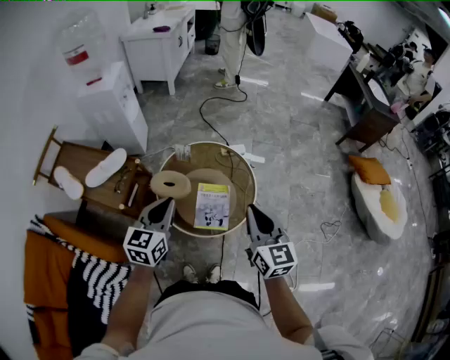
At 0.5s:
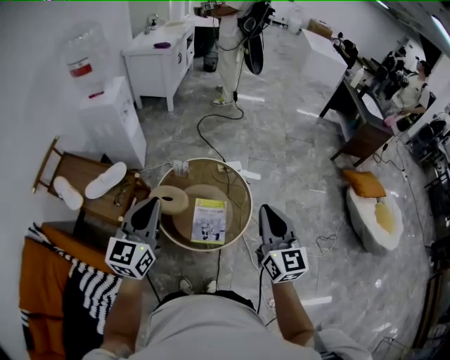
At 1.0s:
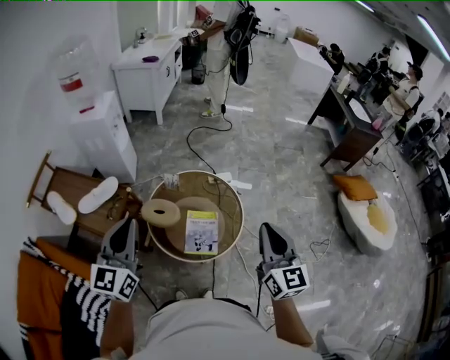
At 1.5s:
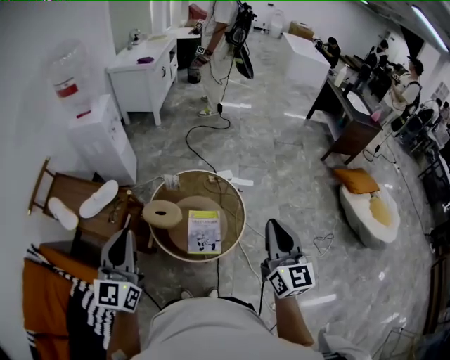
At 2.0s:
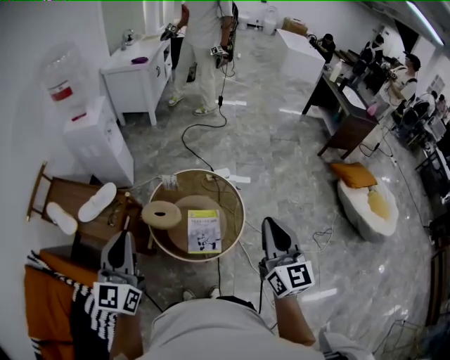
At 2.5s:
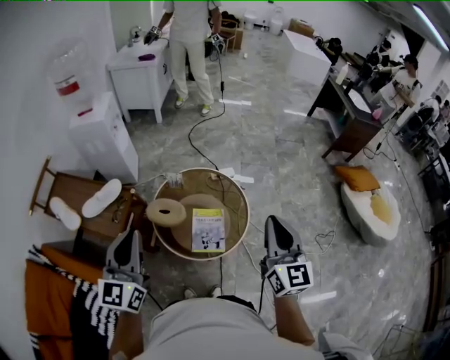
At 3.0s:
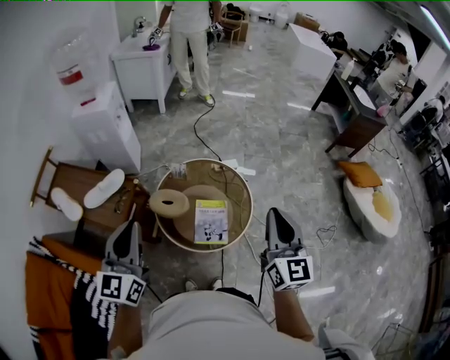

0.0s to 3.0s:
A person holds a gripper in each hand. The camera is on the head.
0.0s to 1.5s: The right gripper shifts roughly 10 cm upward and to the right. Meanwhile the left gripper goes roughly 15 cm upward, to the left and backward, and rotates about 20 degrees.
1.5s to 3.0s: There are only small adjustments of the grippers.

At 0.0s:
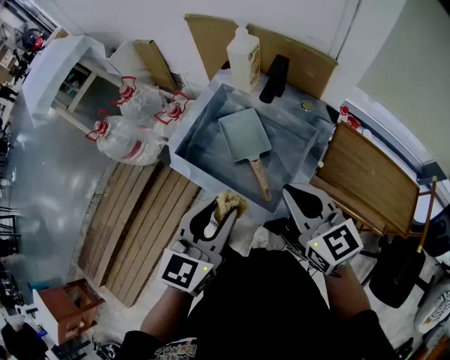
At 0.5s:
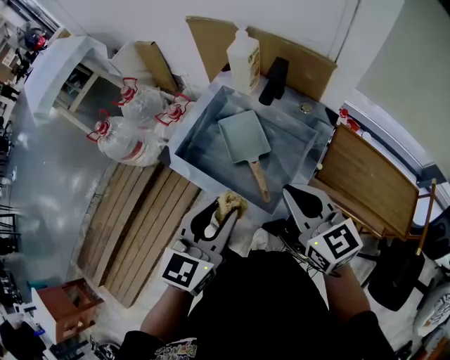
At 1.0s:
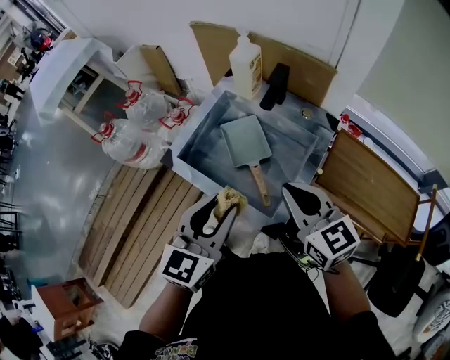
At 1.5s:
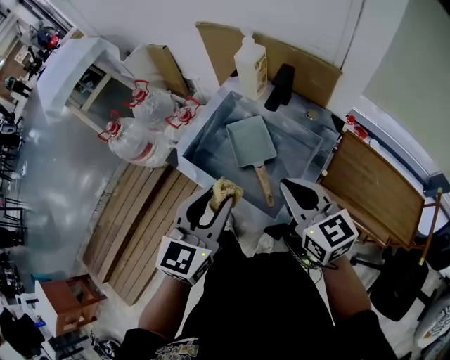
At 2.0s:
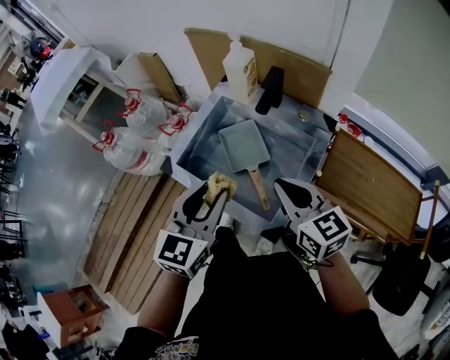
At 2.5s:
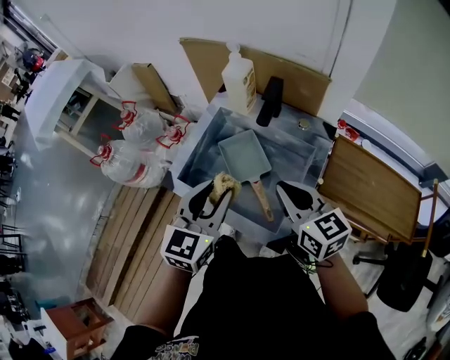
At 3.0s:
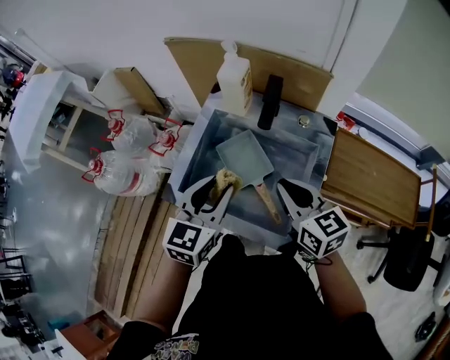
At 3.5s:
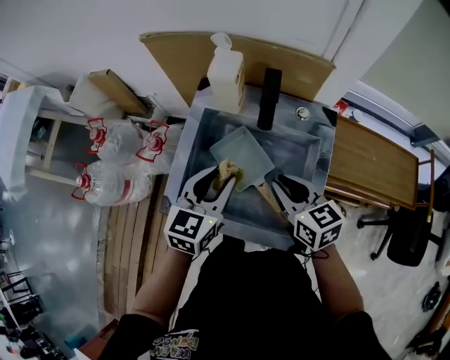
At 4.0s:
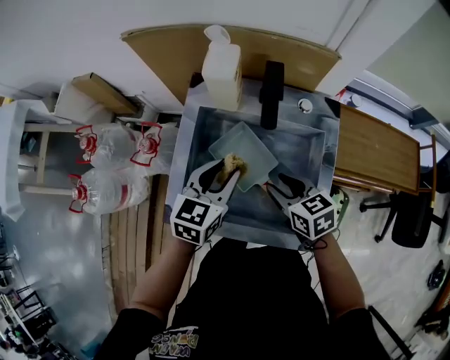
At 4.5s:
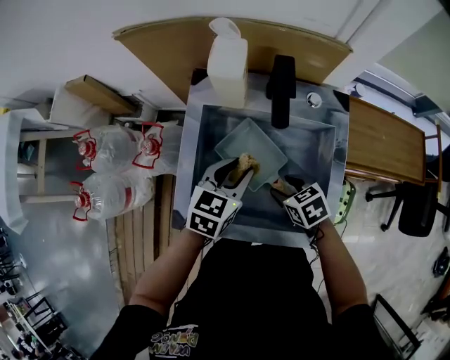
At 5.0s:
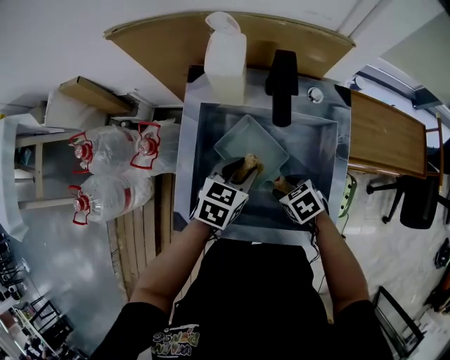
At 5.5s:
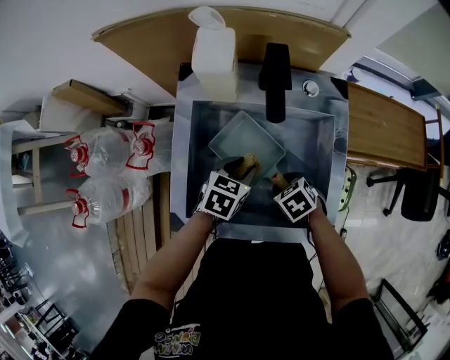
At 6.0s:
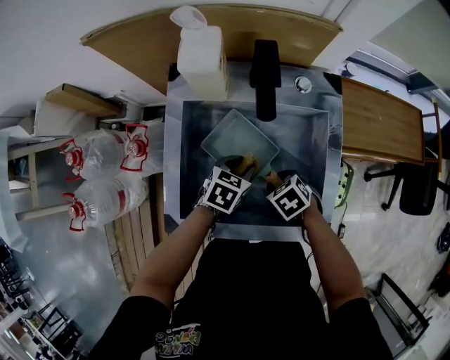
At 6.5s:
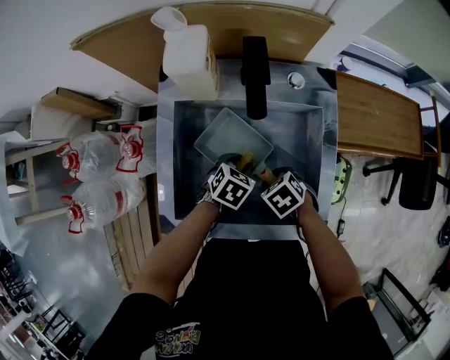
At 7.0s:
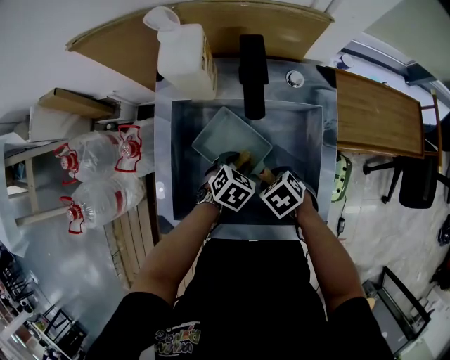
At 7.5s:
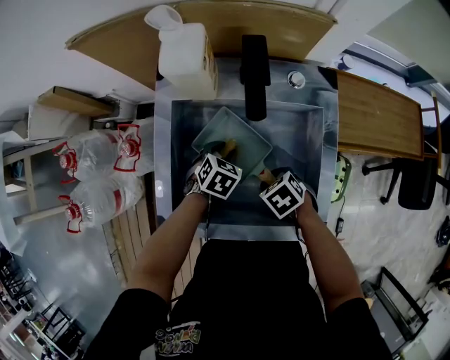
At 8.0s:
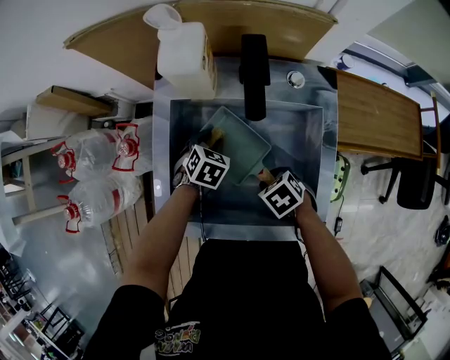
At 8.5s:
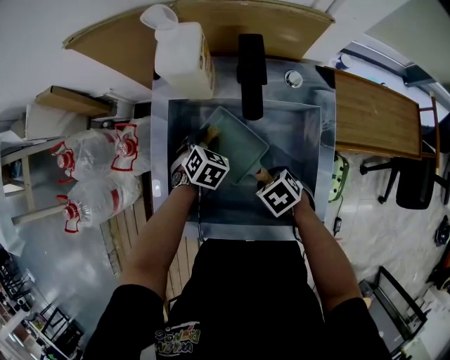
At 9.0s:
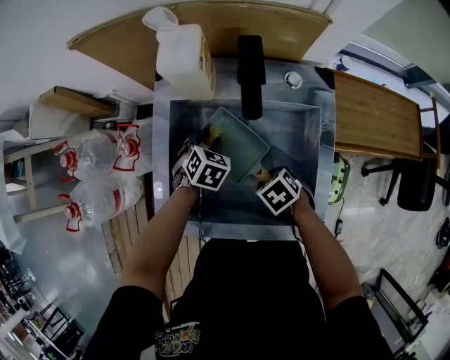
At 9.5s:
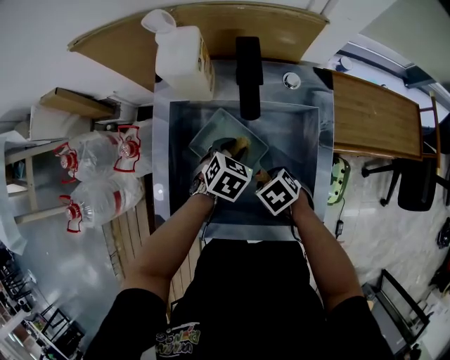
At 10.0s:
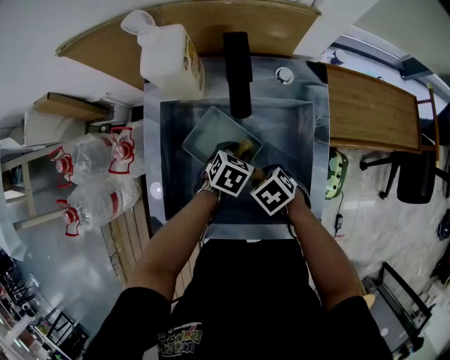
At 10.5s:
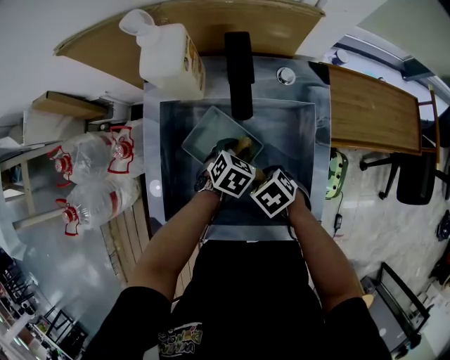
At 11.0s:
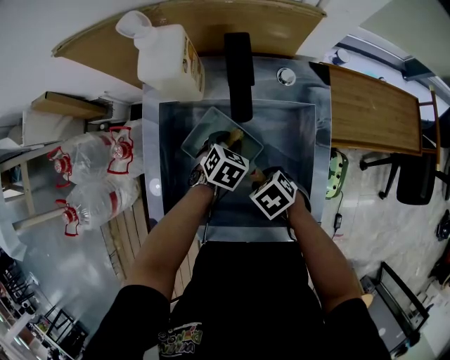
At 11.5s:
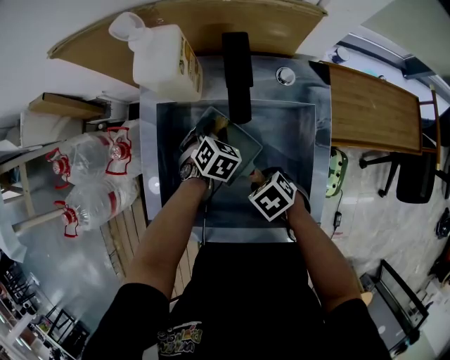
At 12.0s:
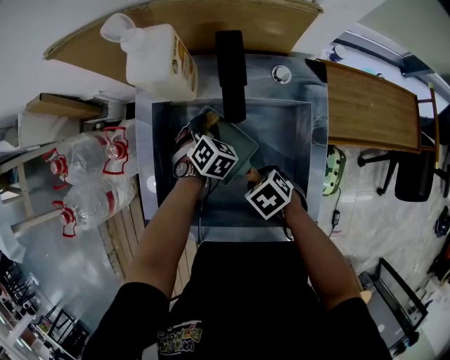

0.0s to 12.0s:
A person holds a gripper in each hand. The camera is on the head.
0.0s to 2.0s: The left gripper shifts by approximately 5 cm.
2.0s to 4.0s: The left gripper heads forward and downward, covering some 25 cm, and rotates some 30 degrees, while the right gripper heads downward and forward, covering roughly 20 cm, rotates about 30 degrees, and opens up.
4.0s to 6.0s: The grippers both shift downward by roughly 15 cm. The left gripper swivels roughly 30 degrees, while the right gripper angles its fingers downward, by approximately 30 degrees.
6.0s to 8.0s: The left gripper moves approximately 10 cm, and turns by approximately 20 degrees.
8.0s to 10.0s: The left gripper ends up about 10 cm from where it was.
10.0s to 12.0s: The left gripper moves about 10 cm, and changes its angle by approximately 30 degrees.

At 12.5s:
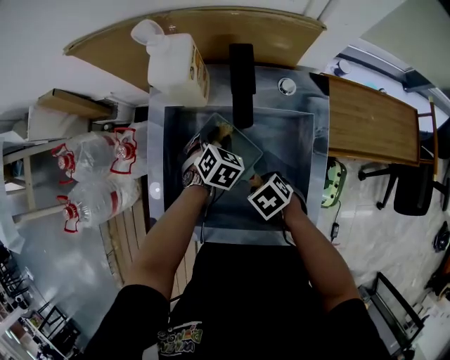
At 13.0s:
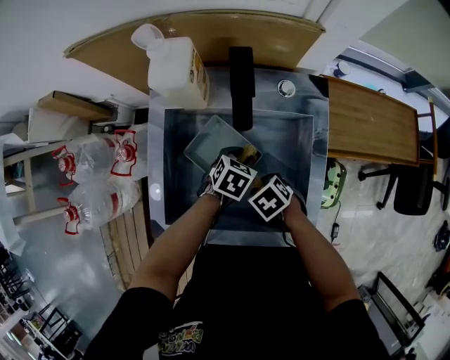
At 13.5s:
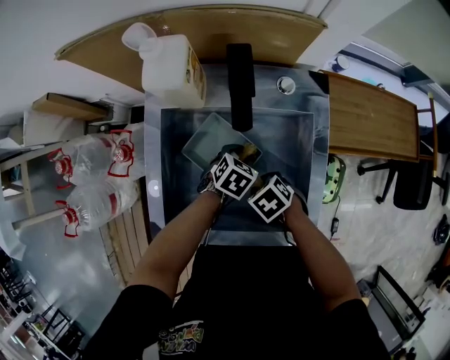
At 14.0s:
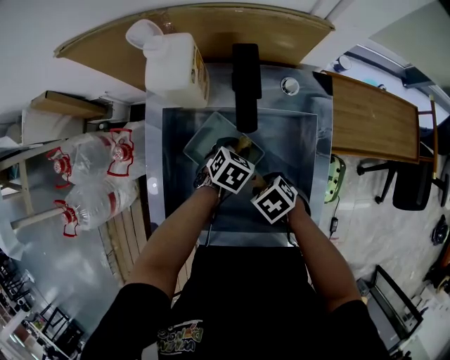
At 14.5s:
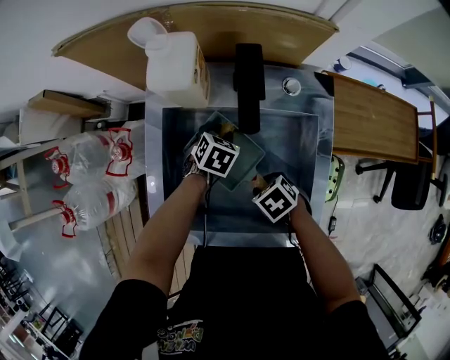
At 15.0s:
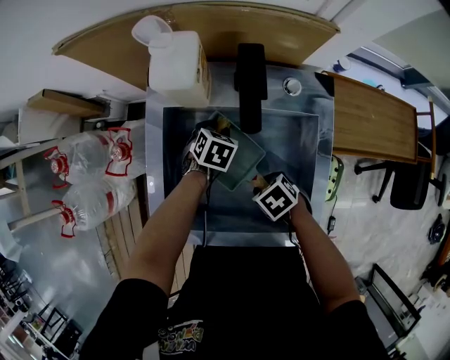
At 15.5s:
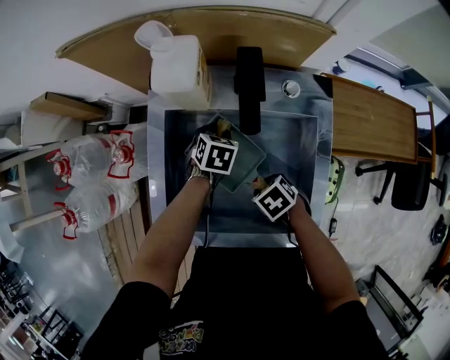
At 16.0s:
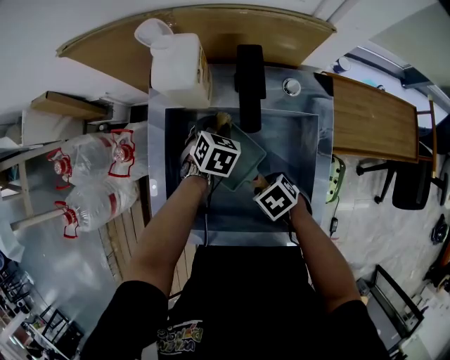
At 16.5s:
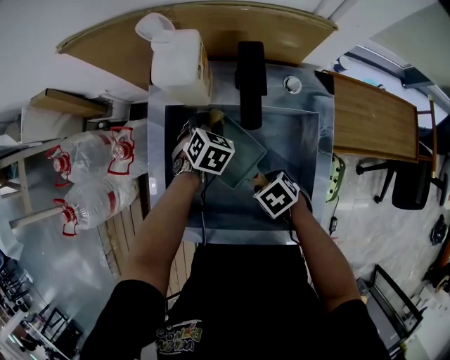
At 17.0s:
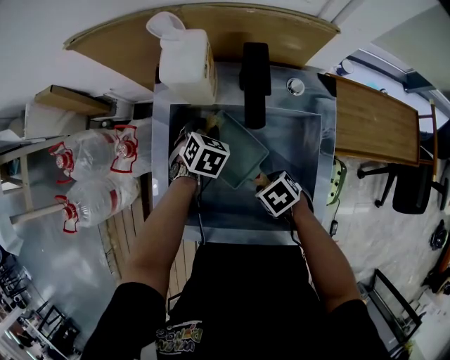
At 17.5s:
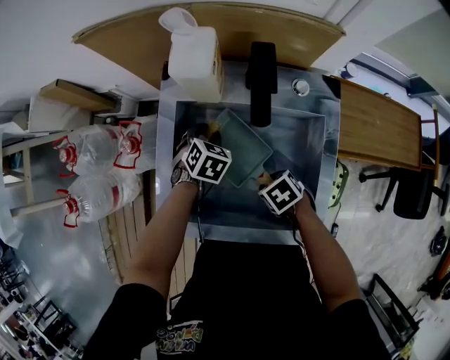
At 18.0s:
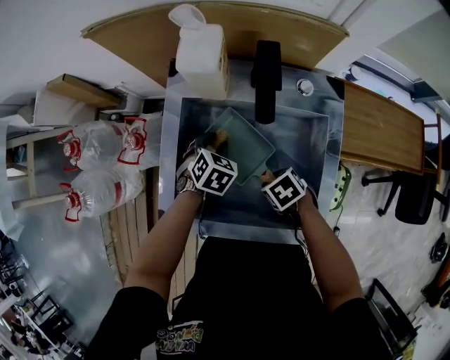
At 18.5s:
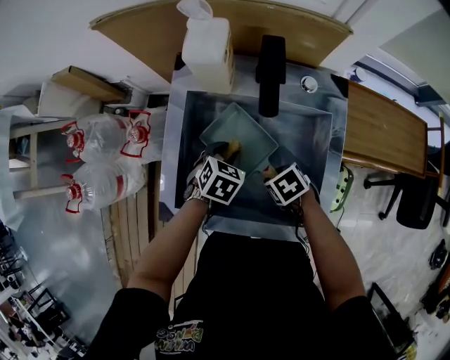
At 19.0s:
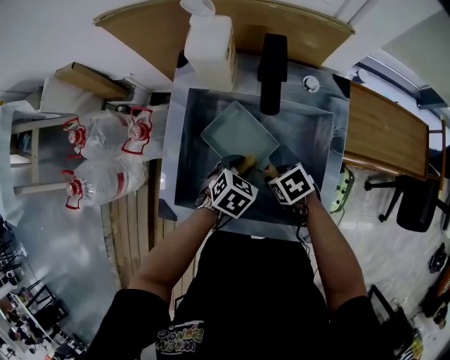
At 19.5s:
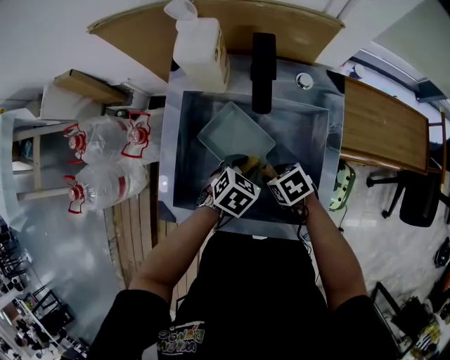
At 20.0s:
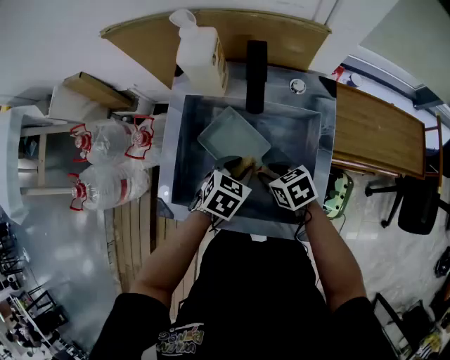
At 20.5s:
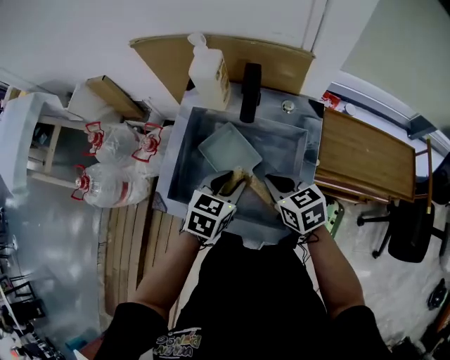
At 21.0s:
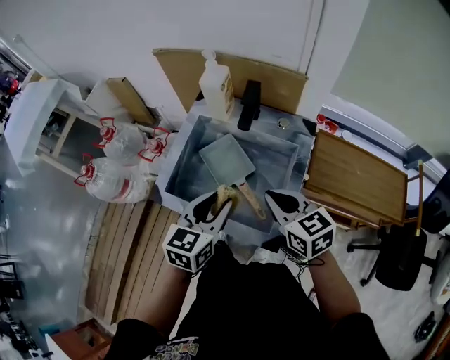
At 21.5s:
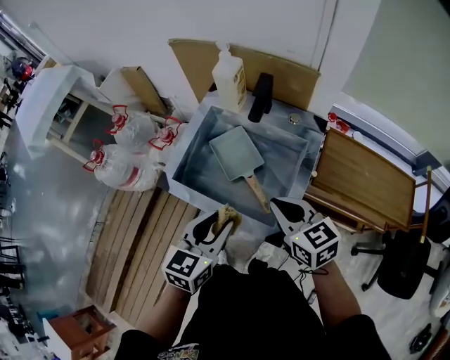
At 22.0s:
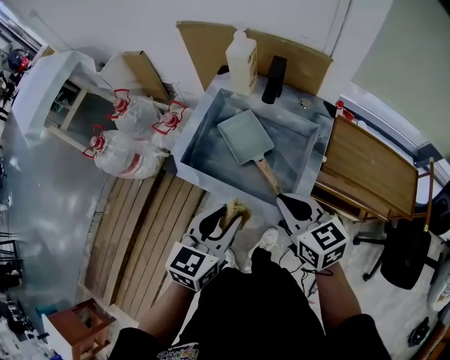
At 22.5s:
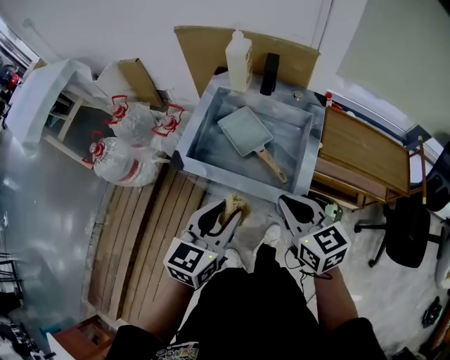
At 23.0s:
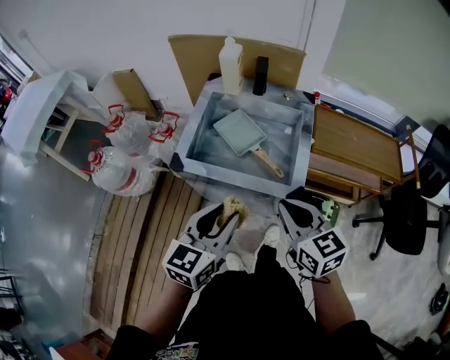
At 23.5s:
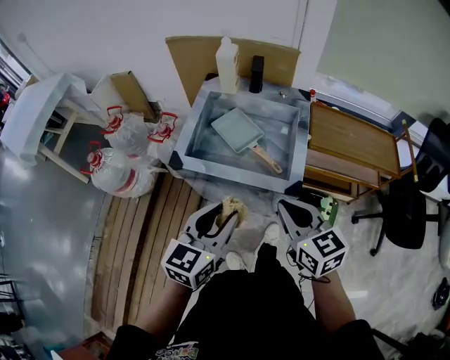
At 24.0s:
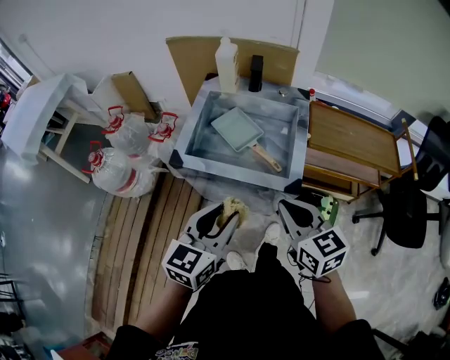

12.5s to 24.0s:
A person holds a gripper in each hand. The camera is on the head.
14.5s to 16.5s: The left gripper shifts by some 5 cm.
16.5s to 18.5s: The left gripper moves backward and to the left, about 10 cm.
18.5s to 20.0s: The right gripper moves upward, roughly 5 cm, and swivels about 20 degrees; the left gripper ends up some 10 cm from where it was.
20.0s to 22.0s: The right gripper is displaced upward and backward by some 25 cm, turns by roughly 30 degrees, and closes its fingers; the left gripper shifts roughly 30 cm backward and upward, and points its fingers about 30 degrees further upward.
22.0s to 24.0s: The two grippers go some 15 cm backward.
